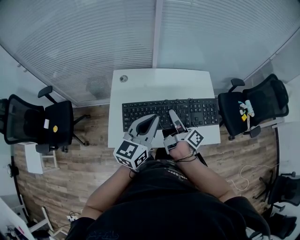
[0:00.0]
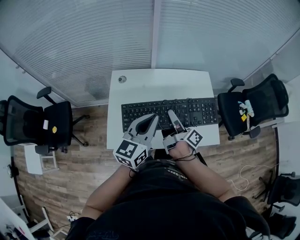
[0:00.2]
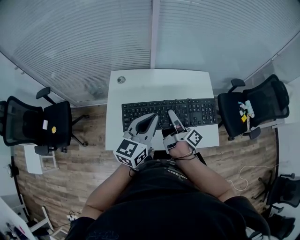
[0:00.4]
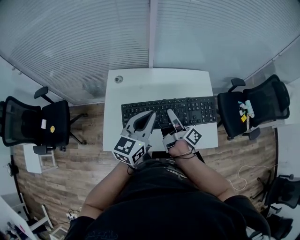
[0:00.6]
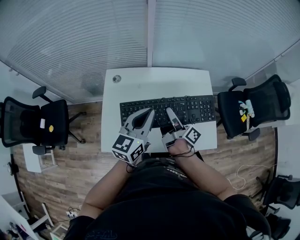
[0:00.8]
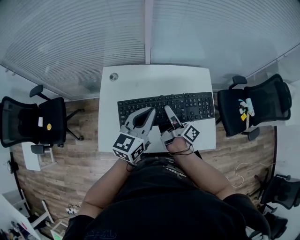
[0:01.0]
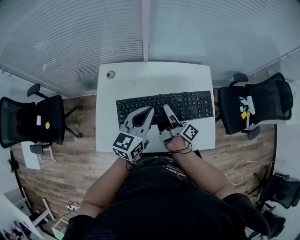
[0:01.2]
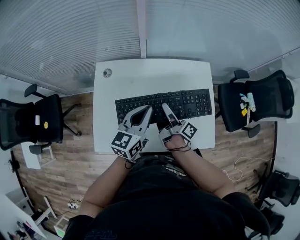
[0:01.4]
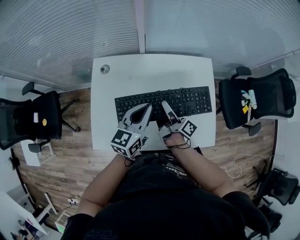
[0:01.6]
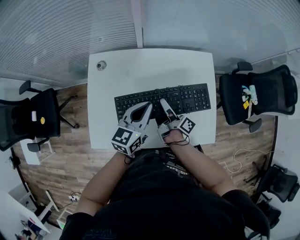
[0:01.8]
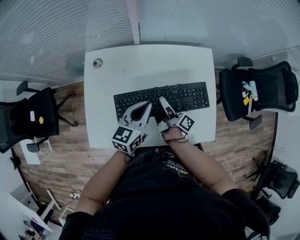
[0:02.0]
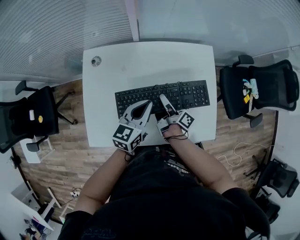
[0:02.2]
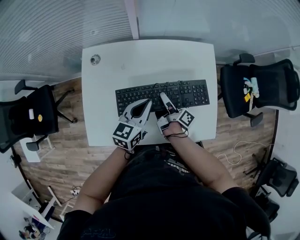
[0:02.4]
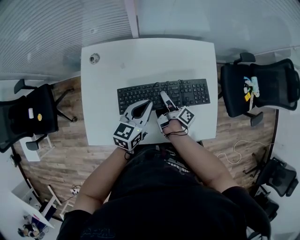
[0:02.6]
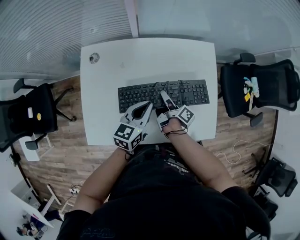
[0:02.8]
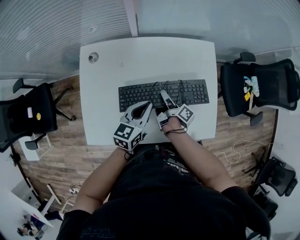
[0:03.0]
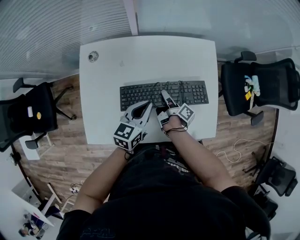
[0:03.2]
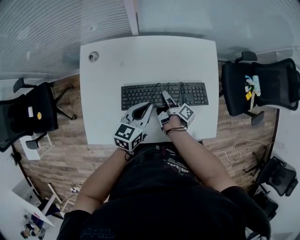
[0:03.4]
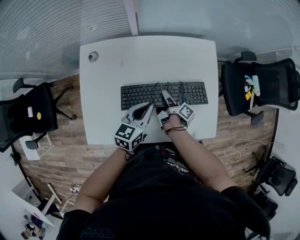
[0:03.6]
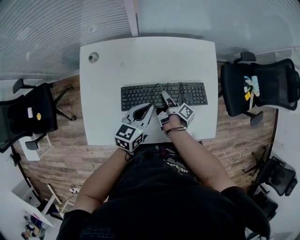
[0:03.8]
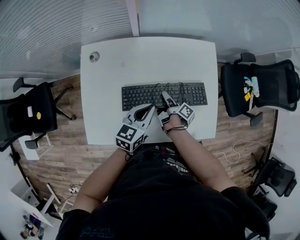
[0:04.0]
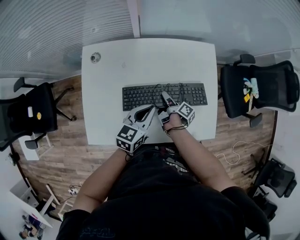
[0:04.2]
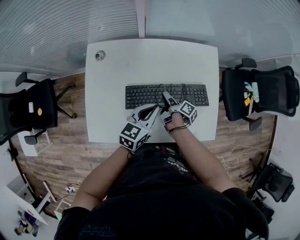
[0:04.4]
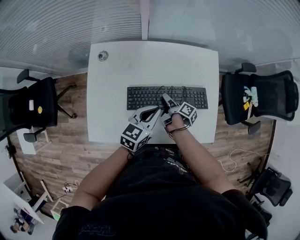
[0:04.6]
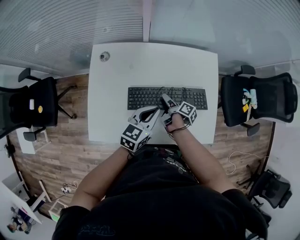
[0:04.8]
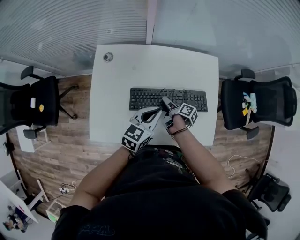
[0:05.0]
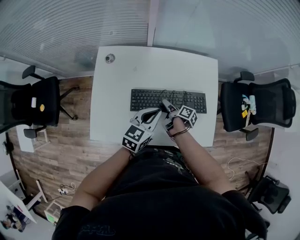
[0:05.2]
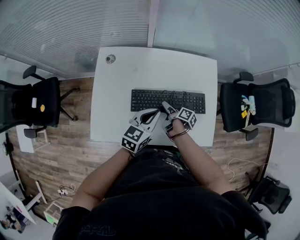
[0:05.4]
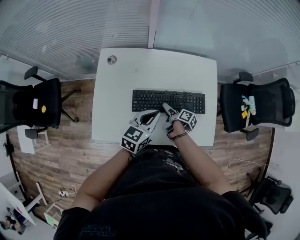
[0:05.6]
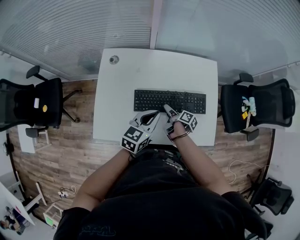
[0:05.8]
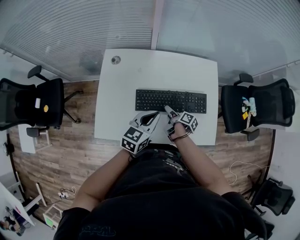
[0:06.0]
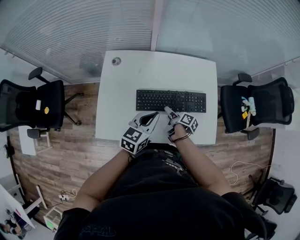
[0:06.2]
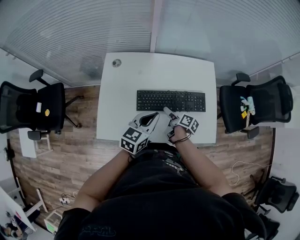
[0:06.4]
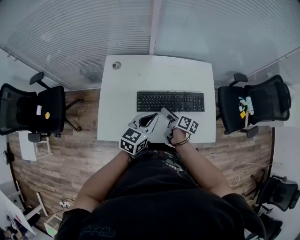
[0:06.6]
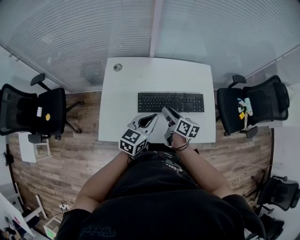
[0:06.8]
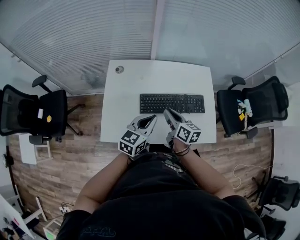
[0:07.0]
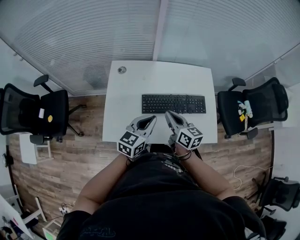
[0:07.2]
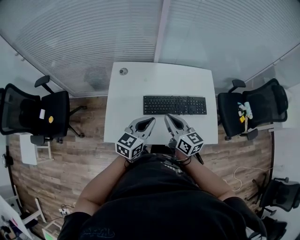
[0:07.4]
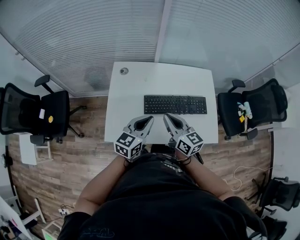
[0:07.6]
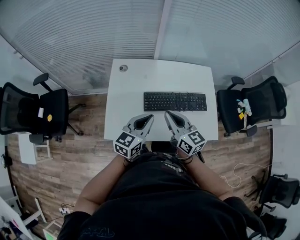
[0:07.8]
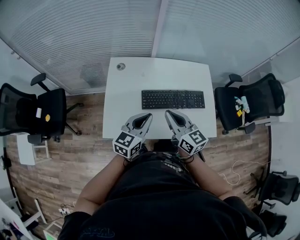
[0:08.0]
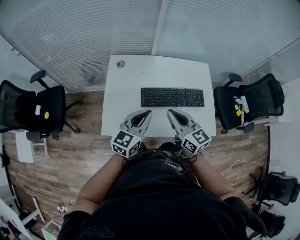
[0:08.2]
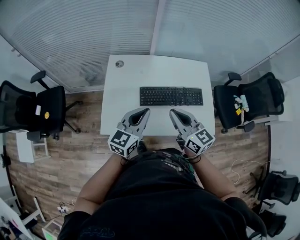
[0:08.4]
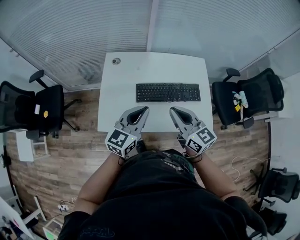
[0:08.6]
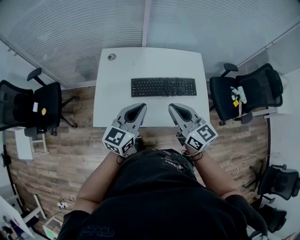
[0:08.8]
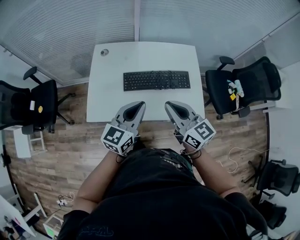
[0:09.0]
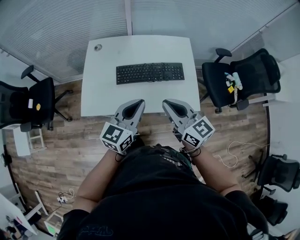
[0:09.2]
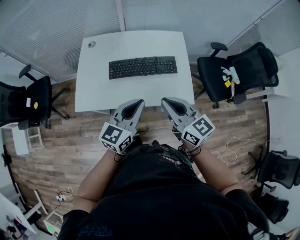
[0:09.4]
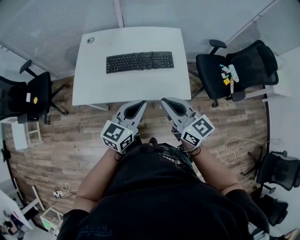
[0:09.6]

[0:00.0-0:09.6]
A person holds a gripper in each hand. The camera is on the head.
0:00.0 to 0:01.6: The left gripper travels forward and downward by approximately 20 cm; the right gripper heads downward and forward, covering roughly 15 cm.
0:01.6 to 0:03.2: Both grippers travel together downward, roughly 10 cm. The right gripper changes its angle by some 20 degrees.
0:03.2 to 0:04.8: The right gripper opens its fingers.
0:04.8 to 0:06.4: The grippers both shift backward by approximately 5 cm.
0:06.4 to 0:08.0: The right gripper heads upward, covering approximately 25 cm, rolls counterclockwise, seen from behind, by about 60 degrees, and closes up. Meanwhile the left gripper moves to the left and backward, roughly 10 cm.
0:08.0 to 0:09.6: The two grippers go approximately 25 cm to the right and backward.

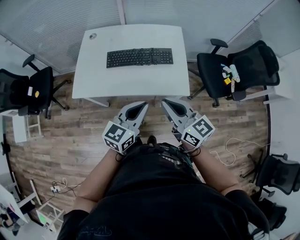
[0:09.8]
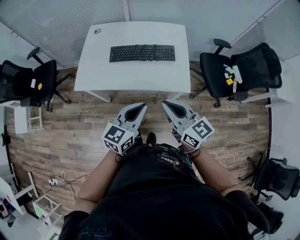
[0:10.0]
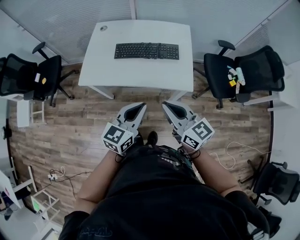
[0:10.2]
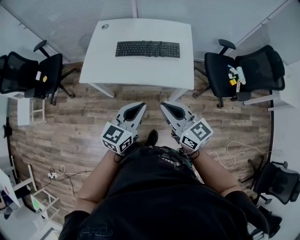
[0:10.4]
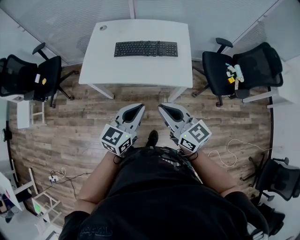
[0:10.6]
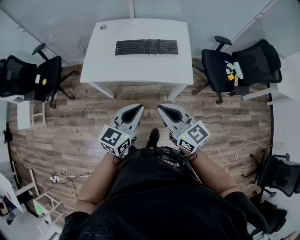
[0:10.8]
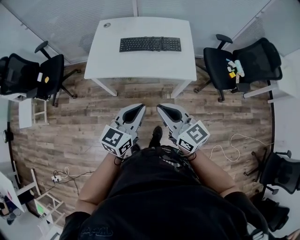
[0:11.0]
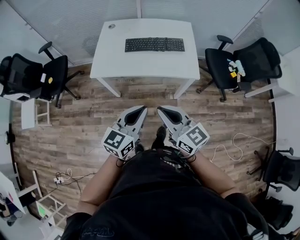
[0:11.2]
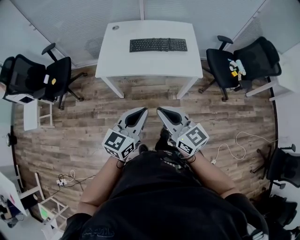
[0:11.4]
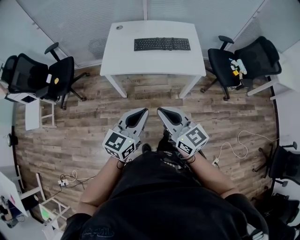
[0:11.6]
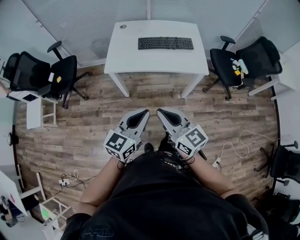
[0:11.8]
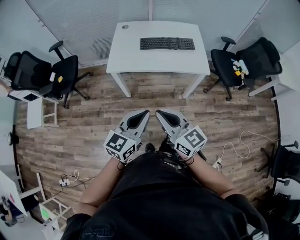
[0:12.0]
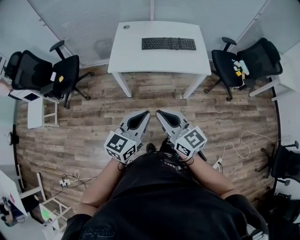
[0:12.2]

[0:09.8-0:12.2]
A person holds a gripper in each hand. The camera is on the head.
0:09.8 to 0:11.0: Both grippers travel together backward and to the left, approximately 15 cm.
0:11.0 to 0:12.2: The two grippers go approximately 20 cm to the left and backward.

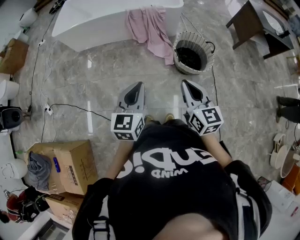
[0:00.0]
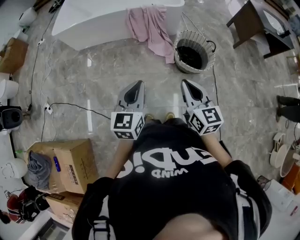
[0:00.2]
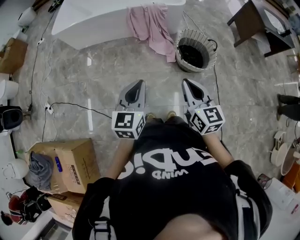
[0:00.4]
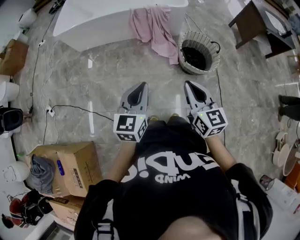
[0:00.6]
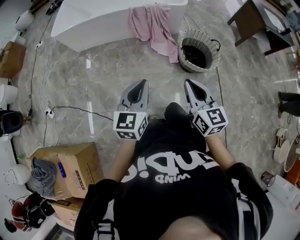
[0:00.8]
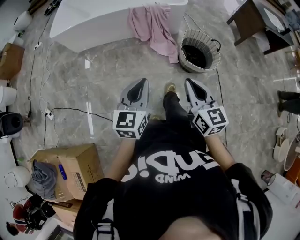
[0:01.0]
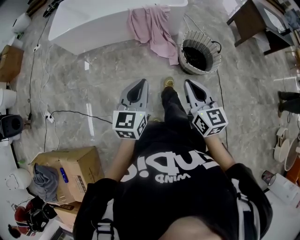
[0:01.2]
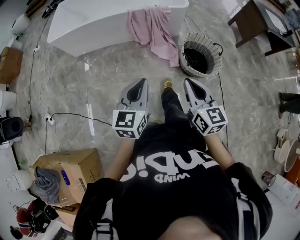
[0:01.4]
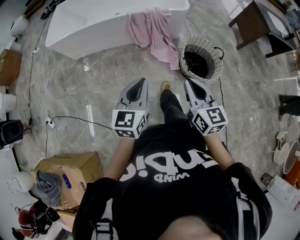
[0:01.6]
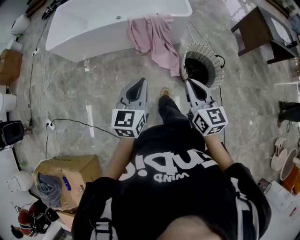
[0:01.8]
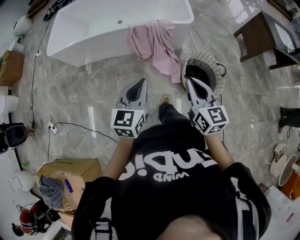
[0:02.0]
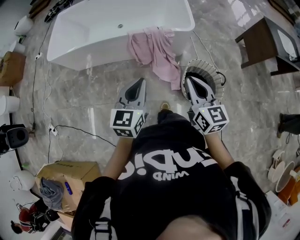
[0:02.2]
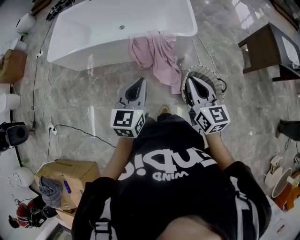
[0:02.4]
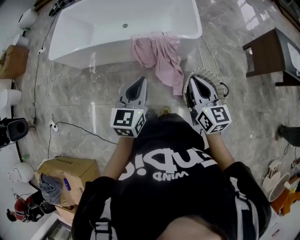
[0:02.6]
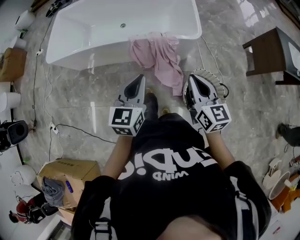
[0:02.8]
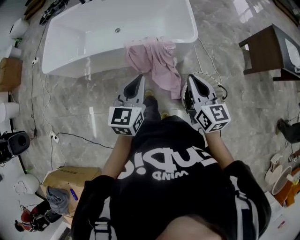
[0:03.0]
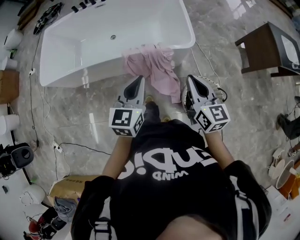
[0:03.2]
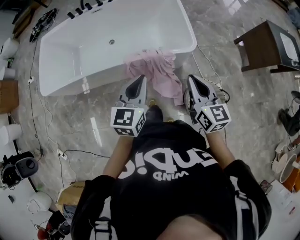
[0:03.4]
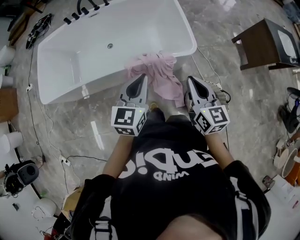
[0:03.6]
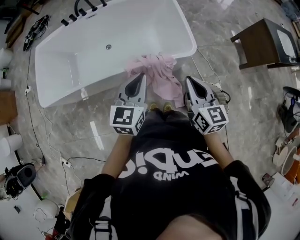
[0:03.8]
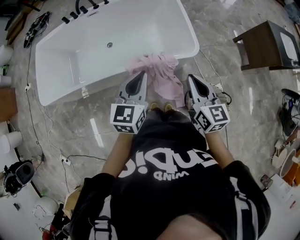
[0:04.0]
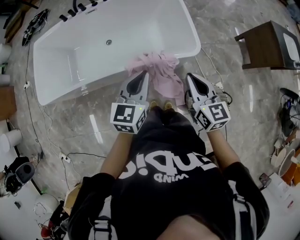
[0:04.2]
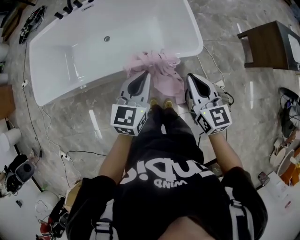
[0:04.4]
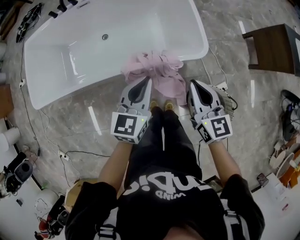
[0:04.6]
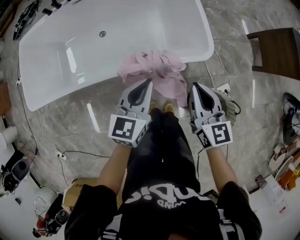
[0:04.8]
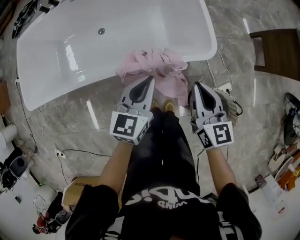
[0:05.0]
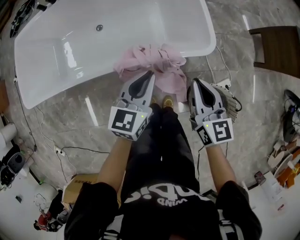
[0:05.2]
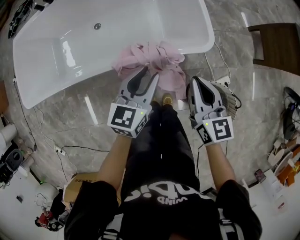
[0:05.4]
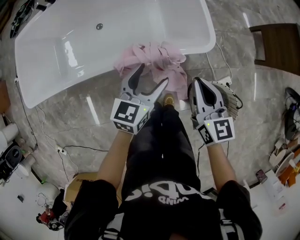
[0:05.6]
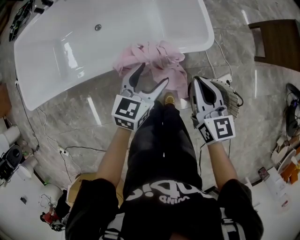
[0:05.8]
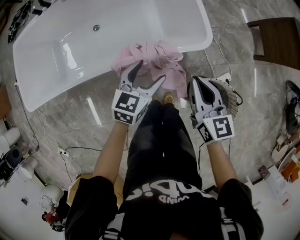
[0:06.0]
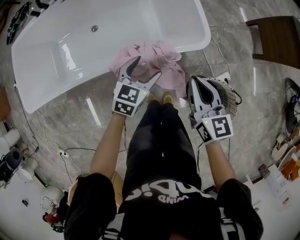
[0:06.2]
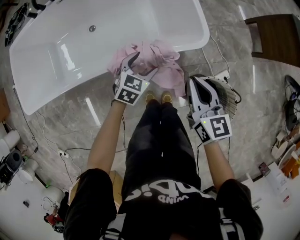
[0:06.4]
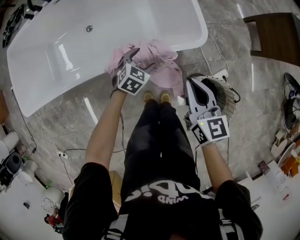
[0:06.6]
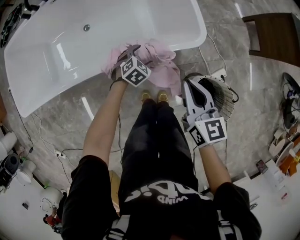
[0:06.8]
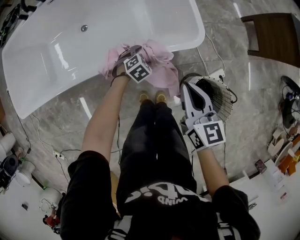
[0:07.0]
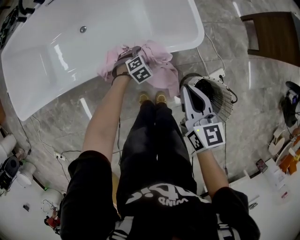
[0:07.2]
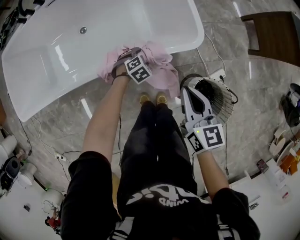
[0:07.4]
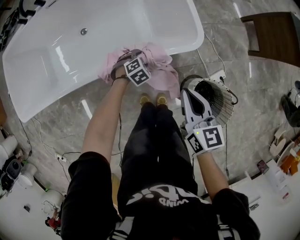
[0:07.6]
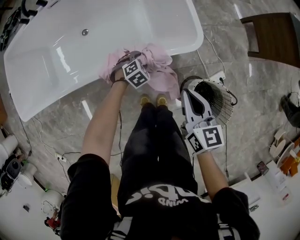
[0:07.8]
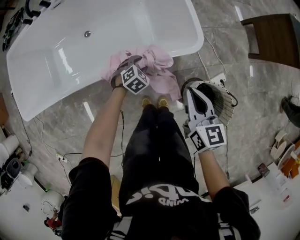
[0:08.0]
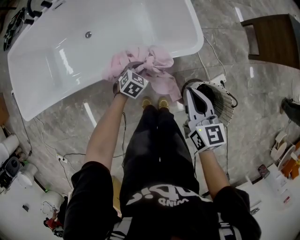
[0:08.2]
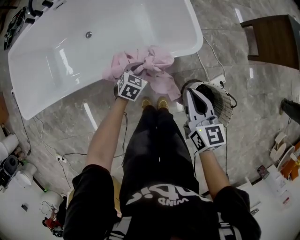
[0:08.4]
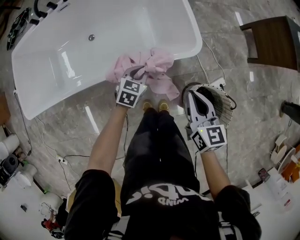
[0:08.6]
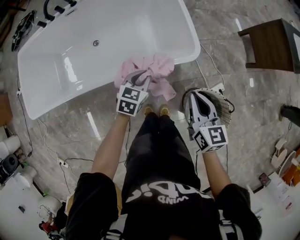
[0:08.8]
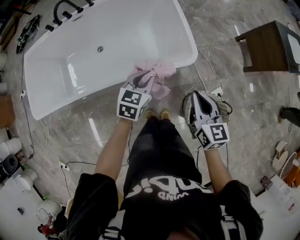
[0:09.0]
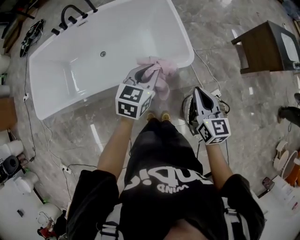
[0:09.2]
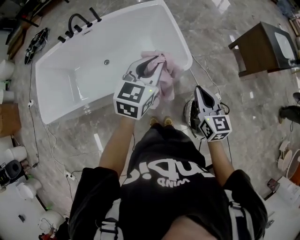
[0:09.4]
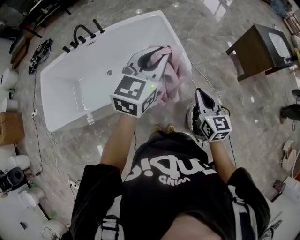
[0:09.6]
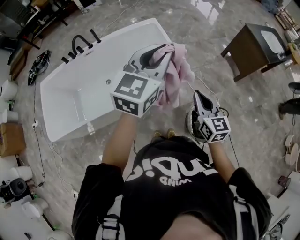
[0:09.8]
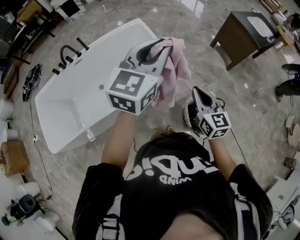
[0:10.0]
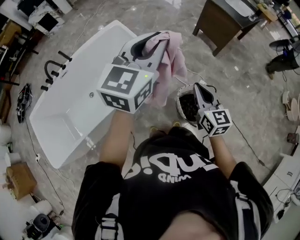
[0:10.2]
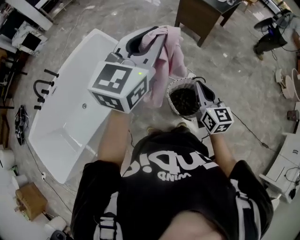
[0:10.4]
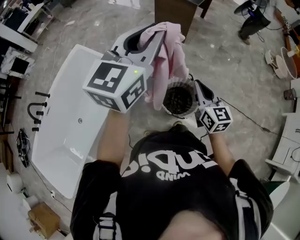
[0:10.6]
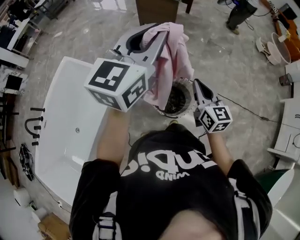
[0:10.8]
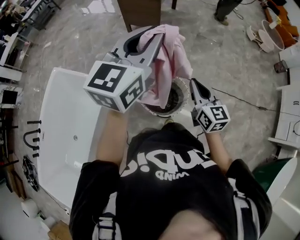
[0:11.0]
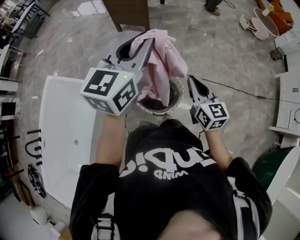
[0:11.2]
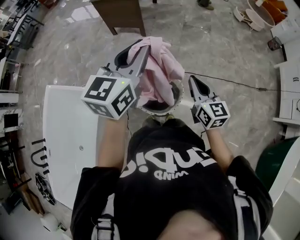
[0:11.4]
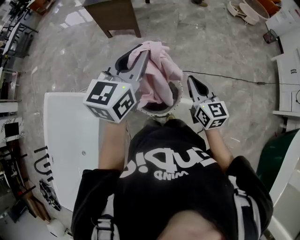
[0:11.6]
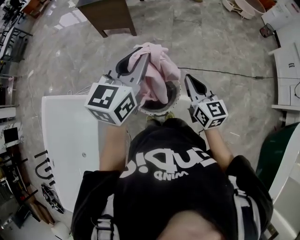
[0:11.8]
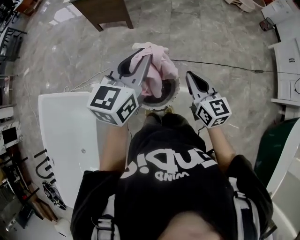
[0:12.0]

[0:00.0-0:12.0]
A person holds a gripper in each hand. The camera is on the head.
0:00.0 to 0:01.6: The grippers both shift forward and to the left by some 15 cm.
0:01.6 to 0:03.0: Both grippers move forward, approximately 40 cm.
0:03.0 to 0:04.4: The grippers both shift forward by approximately 20 cm.
0:04.4 to 0:06.0: Both grippers travel together downward, roughly 15 cm. The left gripper opens its fingers.
0:06.0 to 0:07.6: The left gripper is displaced downward by about 25 cm, and tilts its fingers approximately 40 degrees downward.
0:07.6 to 0:09.0: The left gripper goes approximately 30 cm upward, points its fingers about 40 degrees further upward, and closes, while the right gripper moves upward, about 10 cm.
0:09.0 to 0:10.4: The left gripper is displaced upward by about 40 cm, and angles its fingers upward, by about 30 degrees; the right gripper moves about 25 cm, and rotates roughly 30 degrees.
0:10.4 to 0:12.0: The left gripper ends up about 35 cm from where it was, and turns by about 40 degrees. The right gripper moves about 30 cm, and swivels about 30 degrees.
